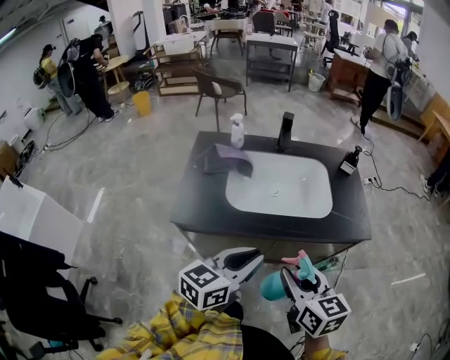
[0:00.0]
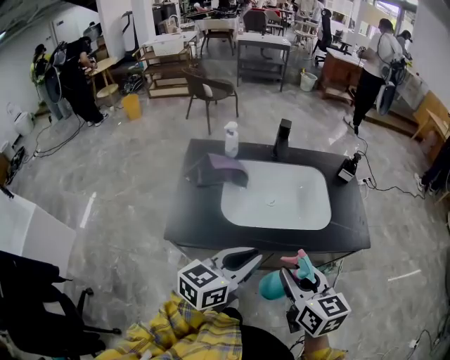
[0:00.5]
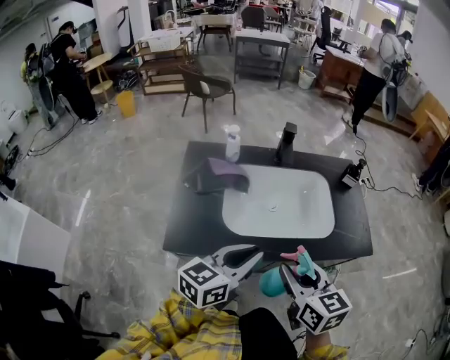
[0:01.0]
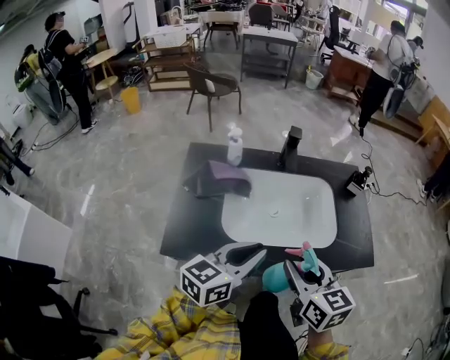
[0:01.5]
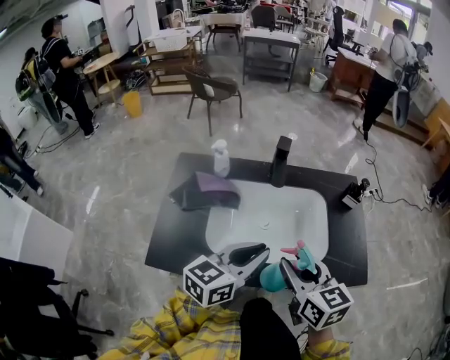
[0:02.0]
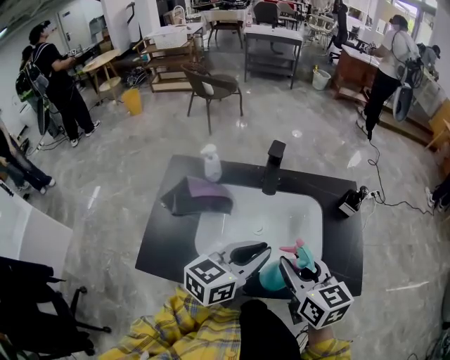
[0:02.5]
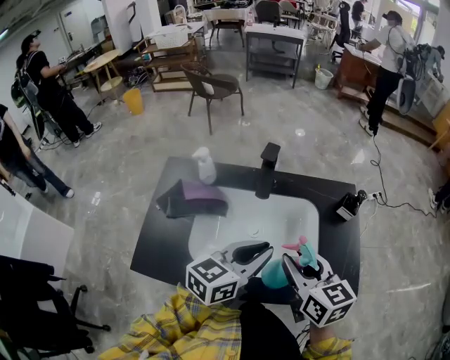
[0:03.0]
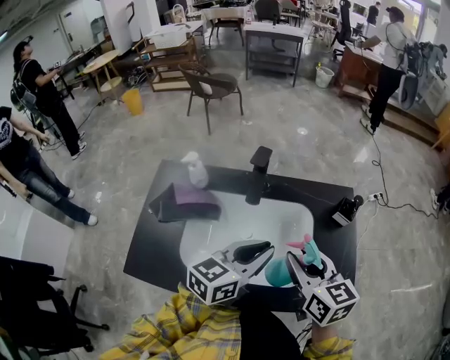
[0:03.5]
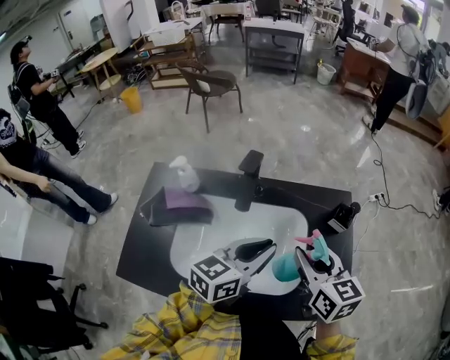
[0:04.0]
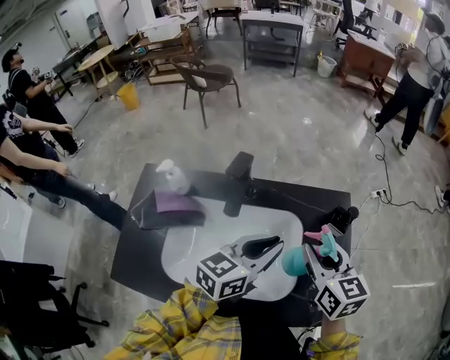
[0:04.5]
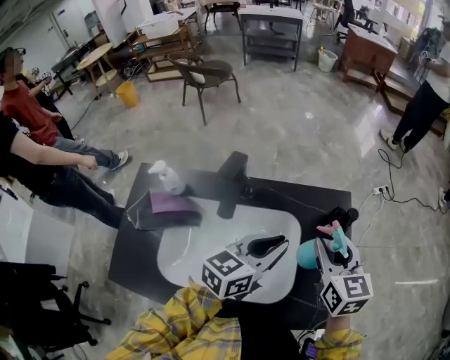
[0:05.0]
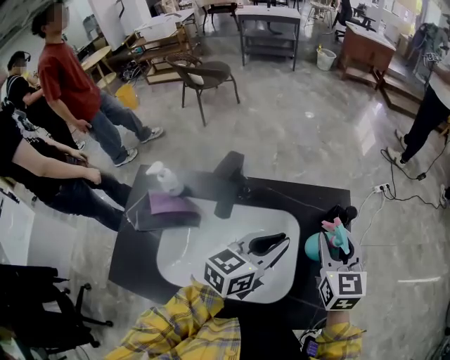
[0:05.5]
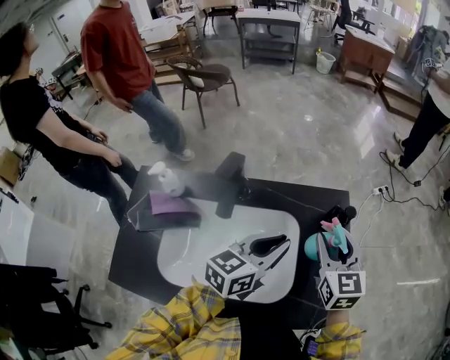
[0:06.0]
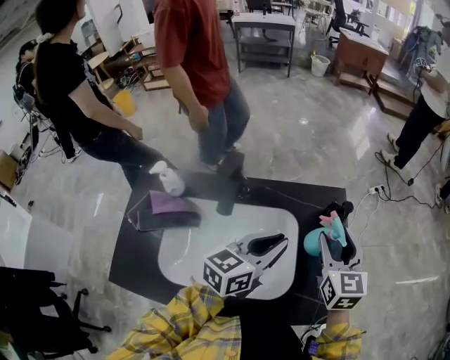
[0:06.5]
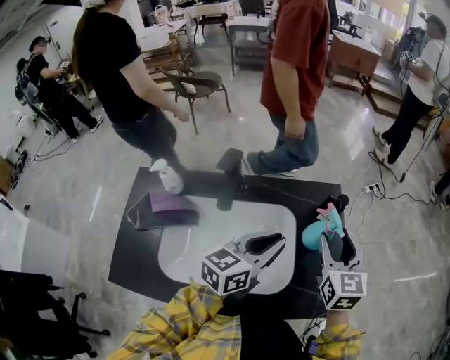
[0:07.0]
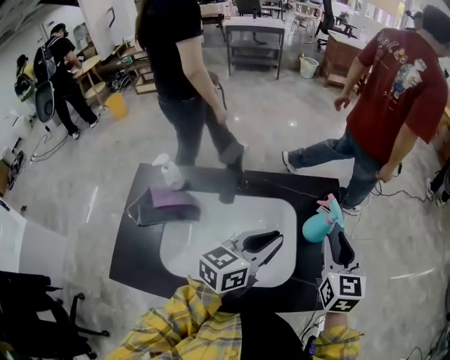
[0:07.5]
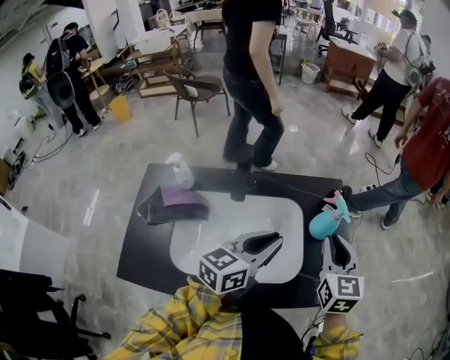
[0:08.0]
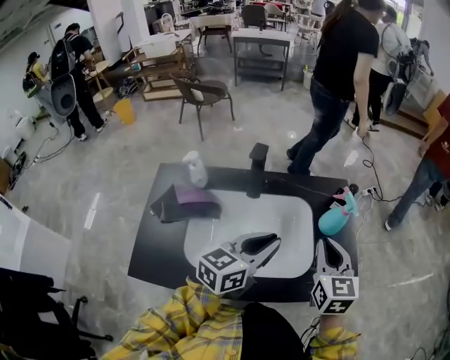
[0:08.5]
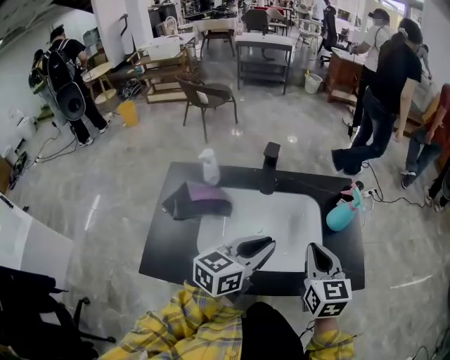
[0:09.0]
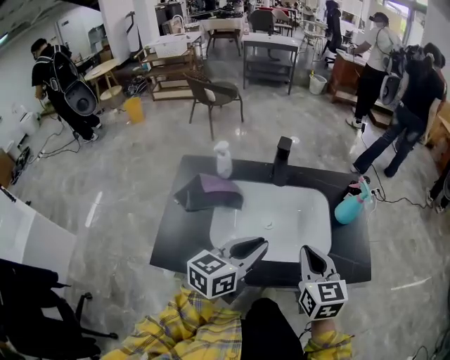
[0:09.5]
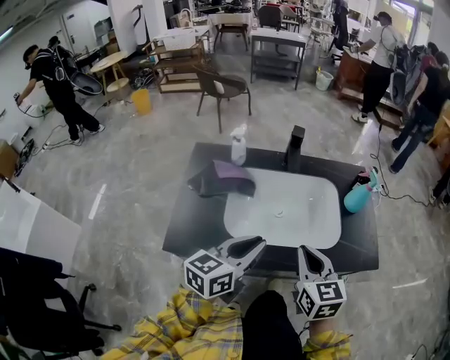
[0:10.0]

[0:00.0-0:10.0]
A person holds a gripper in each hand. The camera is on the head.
0:00.0 to 0:02.0: Both grippers travel together forward, approximately 25 cm.
0:02.0 to 0:04.0: Both grippers travel together forward and to the right, roughly 20 cm.
0:04.0 to 0:06.0: The two grippers go roughly 10 cm forward and to the right. The right gripper swivels approximately 20 degrees.
0:06.0 to 0:08.0: Both grippers move backward, about 10 cm. The right gripper closes up.
0:08.0 to 0:10.0: The two grippers go some 30 cm backward and to the left.

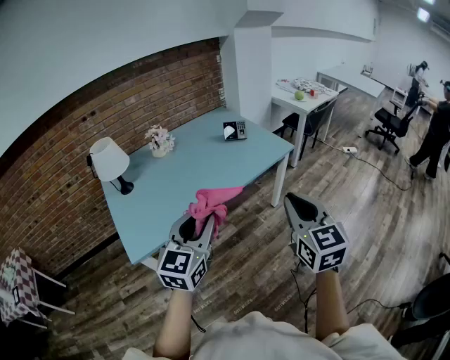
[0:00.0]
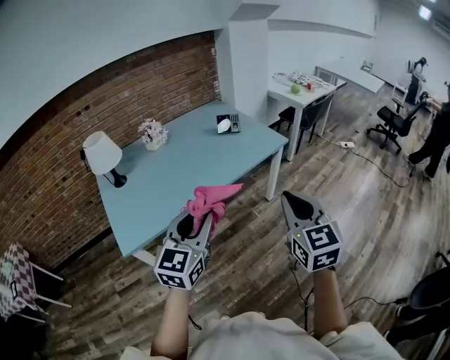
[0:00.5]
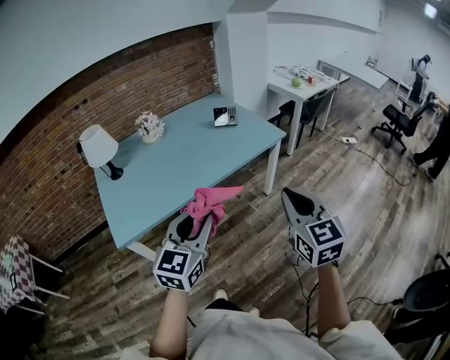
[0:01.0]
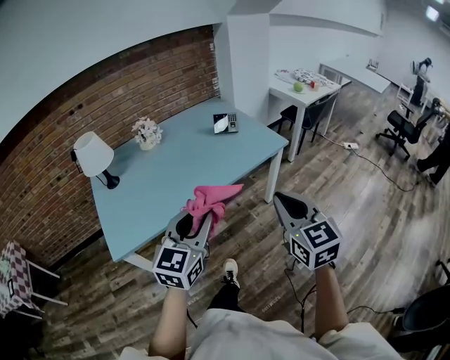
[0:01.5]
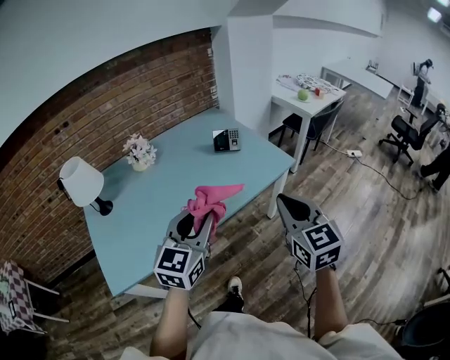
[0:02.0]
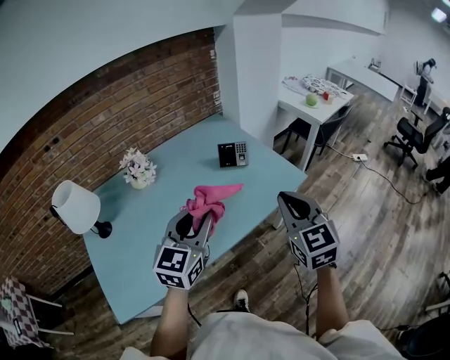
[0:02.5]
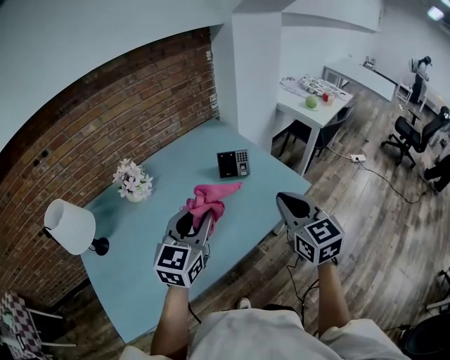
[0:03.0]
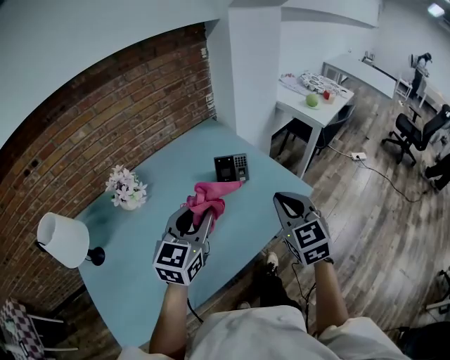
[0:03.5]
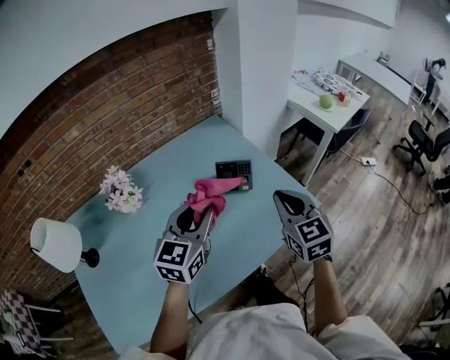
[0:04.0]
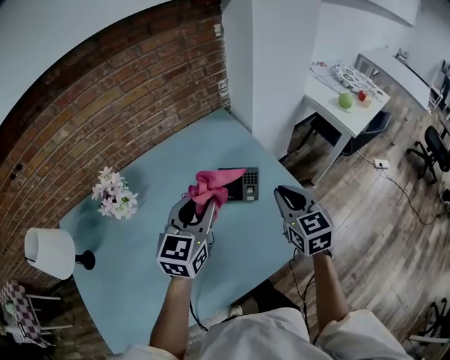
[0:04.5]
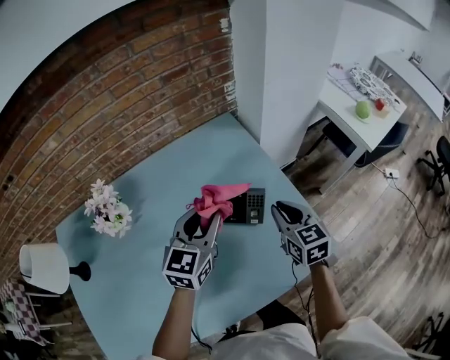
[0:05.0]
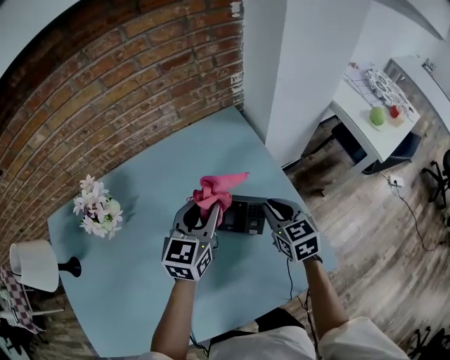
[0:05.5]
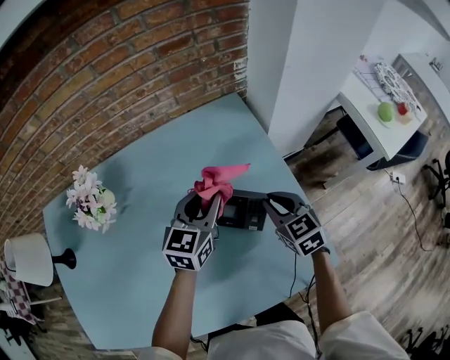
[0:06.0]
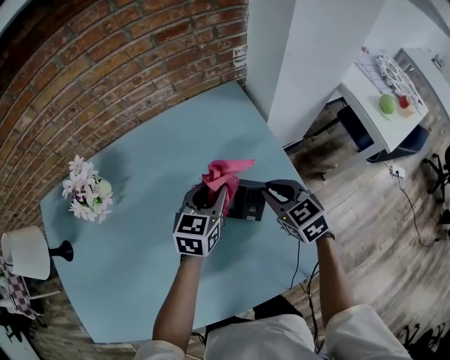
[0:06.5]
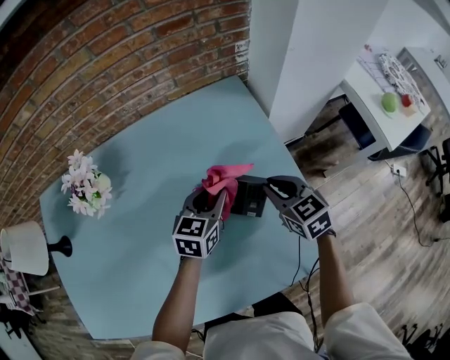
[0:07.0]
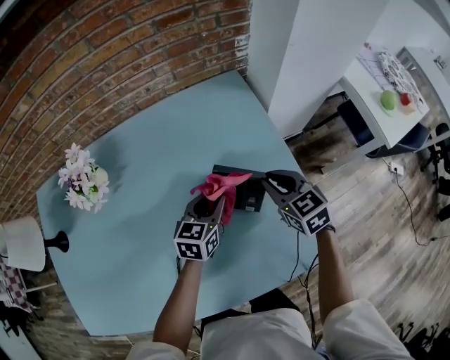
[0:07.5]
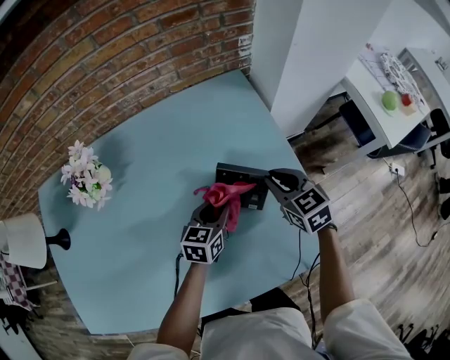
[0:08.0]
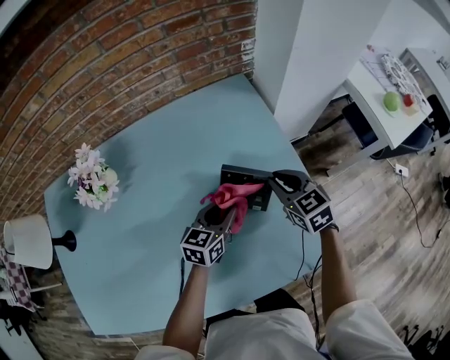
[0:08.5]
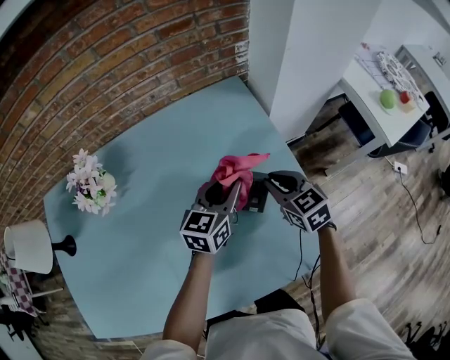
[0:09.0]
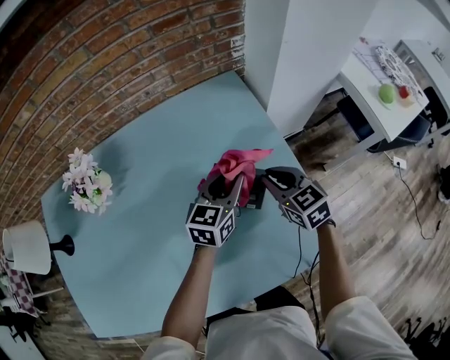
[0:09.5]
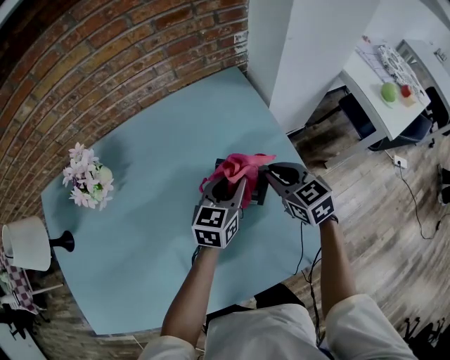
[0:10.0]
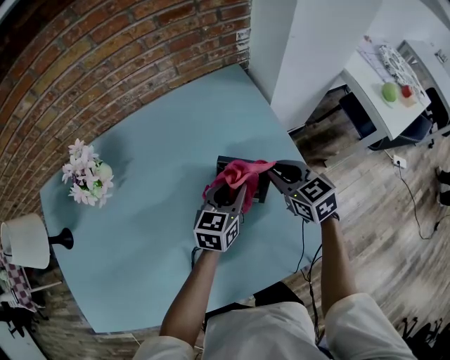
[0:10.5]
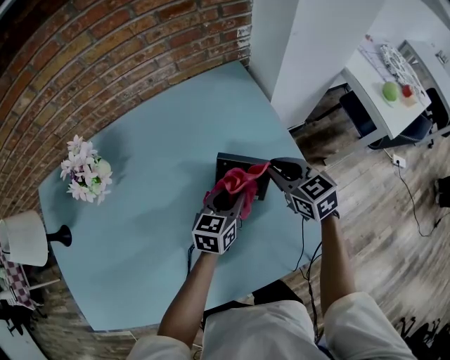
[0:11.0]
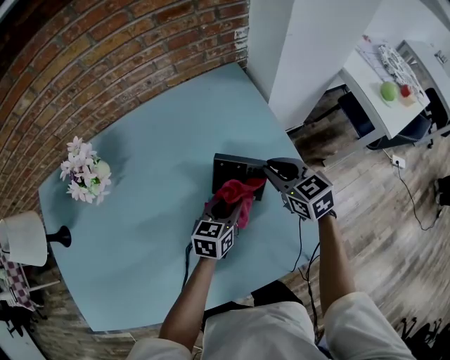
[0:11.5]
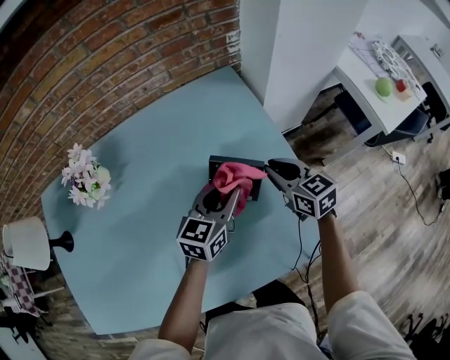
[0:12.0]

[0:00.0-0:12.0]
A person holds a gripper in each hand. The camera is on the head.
0:00.0 to 0:02.0: The two grippers go about 20 cm forward.
0:02.0 to 0:04.0: The two grippers go about 35 cm forward.
0:04.0 to 0:06.0: Both grippers move forward and downward, roughly 30 cm. The right gripper swivels about 30 degrees.
0:06.0 to 0:08.0: The left gripper travels downward and backward by approximately 15 cm.
0:08.0 to 0:10.0: The left gripper heads upward and to the right, covering some 10 cm.
0:10.0 to 0:12.0: The left gripper goes downward and returns, some 5 cm each way.

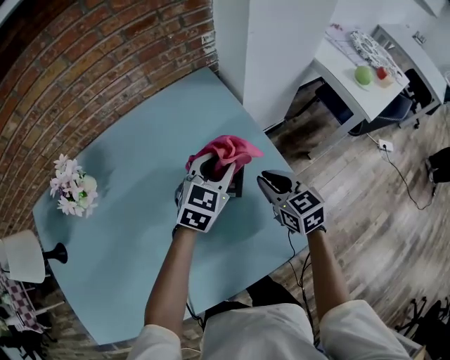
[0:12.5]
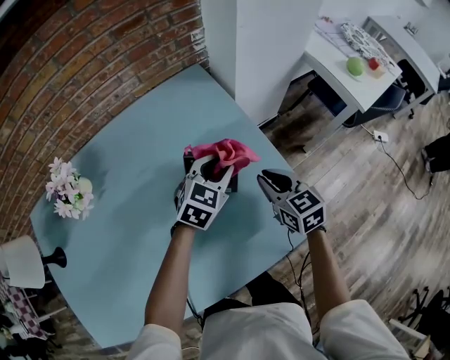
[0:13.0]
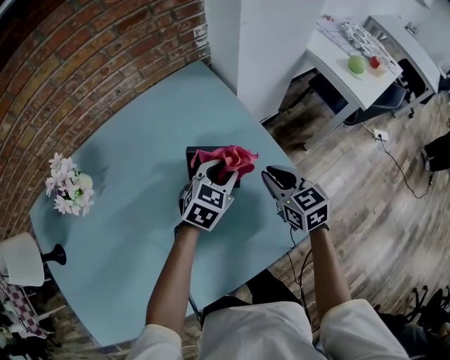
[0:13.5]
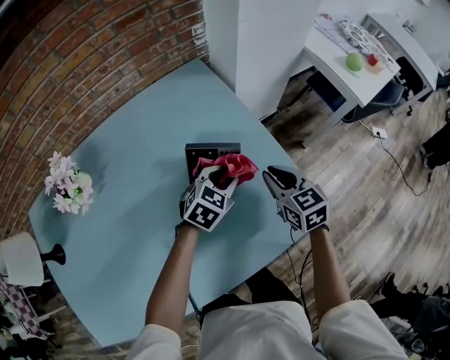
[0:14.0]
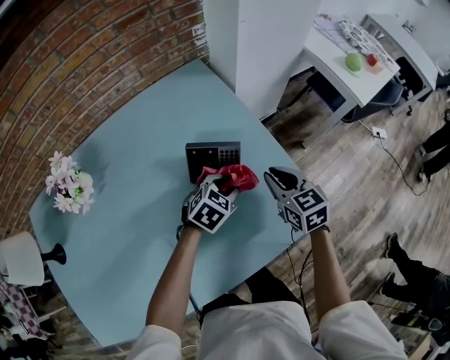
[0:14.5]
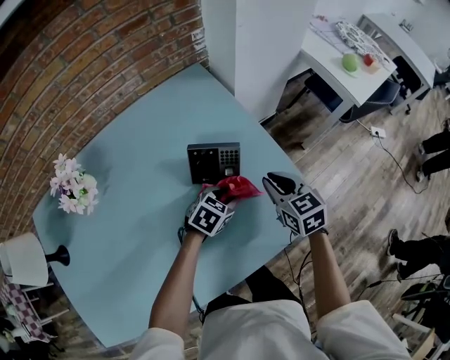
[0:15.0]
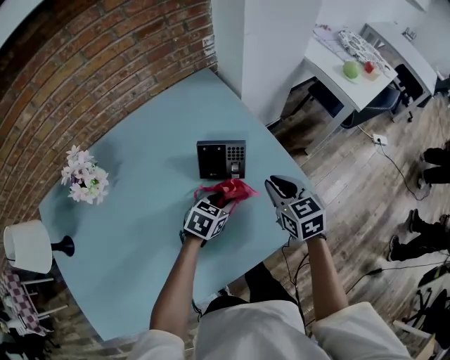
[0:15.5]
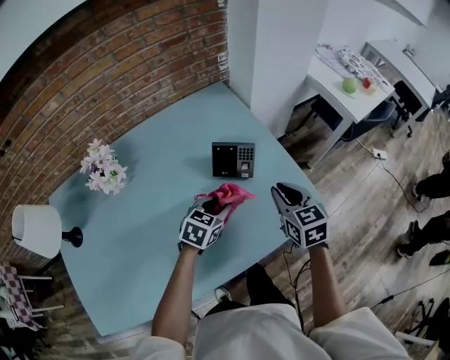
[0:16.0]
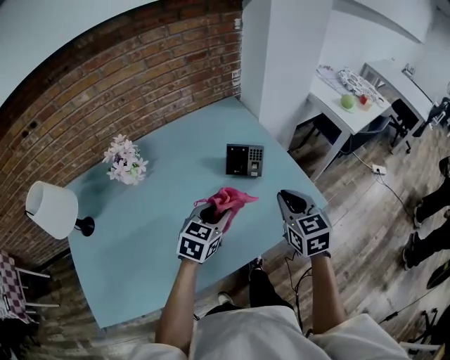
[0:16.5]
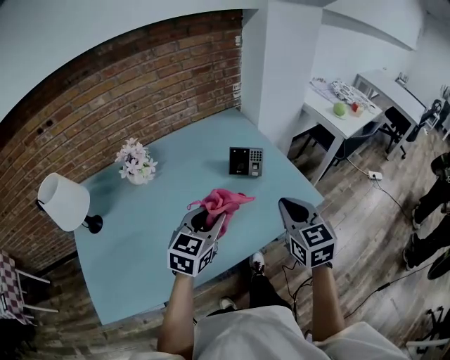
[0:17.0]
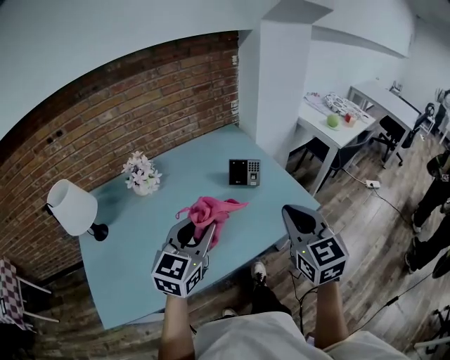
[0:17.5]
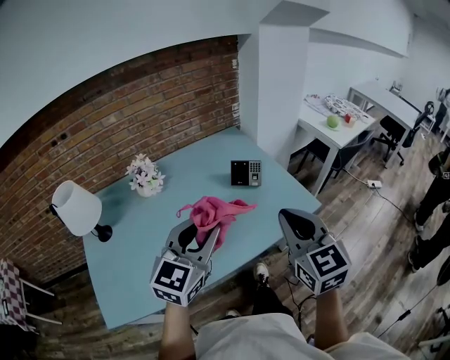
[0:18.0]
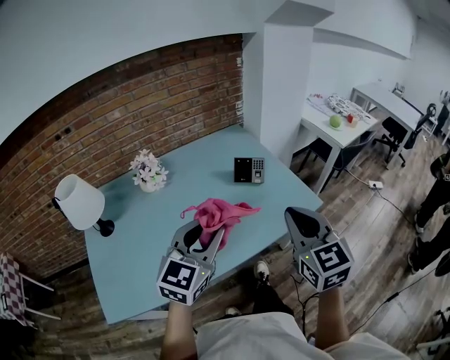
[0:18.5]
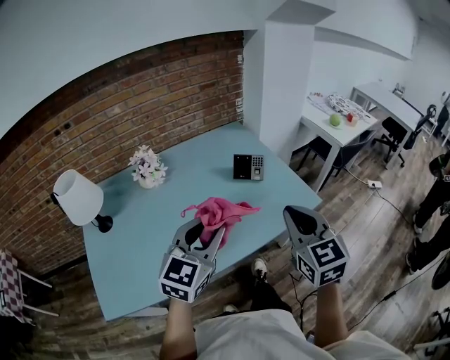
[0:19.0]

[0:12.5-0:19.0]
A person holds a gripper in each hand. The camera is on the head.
0:12.5 to 0:14.5: The left gripper goes some 15 cm downward and backward, and swivels some 30 degrees.
0:14.5 to 0:17.0: The right gripper moves backward and upward, about 35 cm; the left gripper goes approximately 40 cm backward, upward and to the left, and points its fingers roughly 30 degrees further upward.
0:17.0 to 0:19.0: Both grippers move backward and upward, approximately 15 cm.
